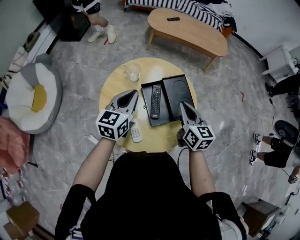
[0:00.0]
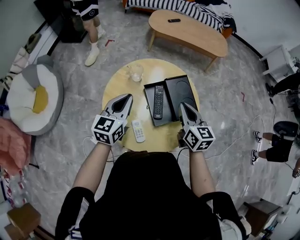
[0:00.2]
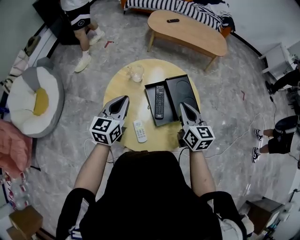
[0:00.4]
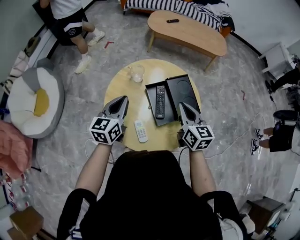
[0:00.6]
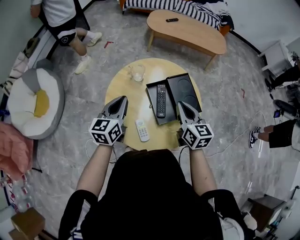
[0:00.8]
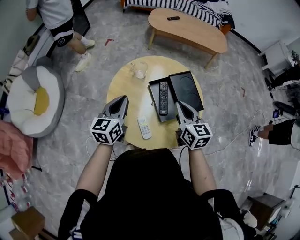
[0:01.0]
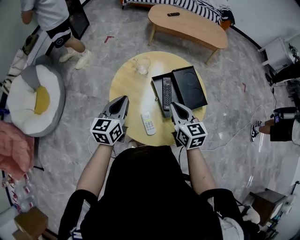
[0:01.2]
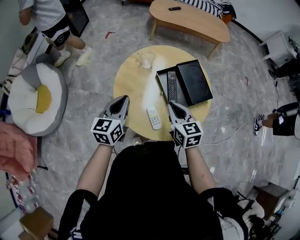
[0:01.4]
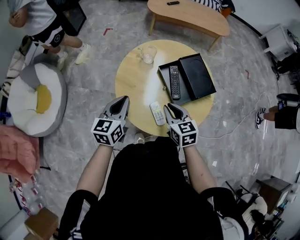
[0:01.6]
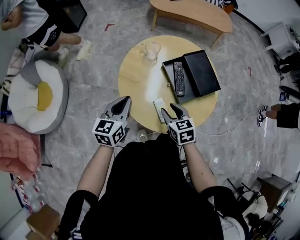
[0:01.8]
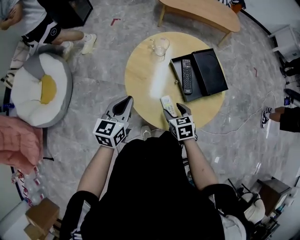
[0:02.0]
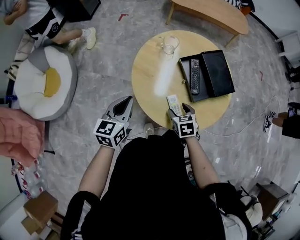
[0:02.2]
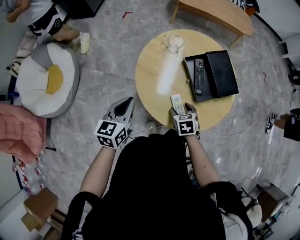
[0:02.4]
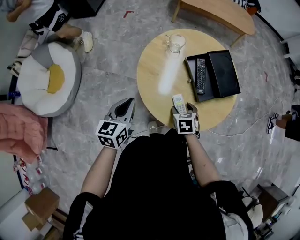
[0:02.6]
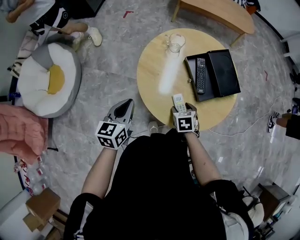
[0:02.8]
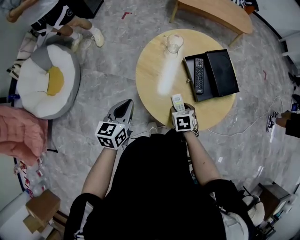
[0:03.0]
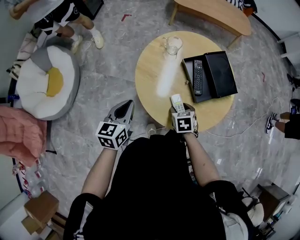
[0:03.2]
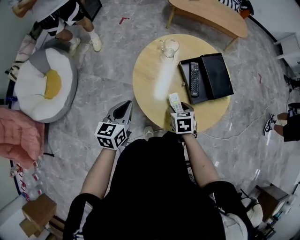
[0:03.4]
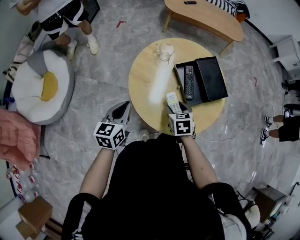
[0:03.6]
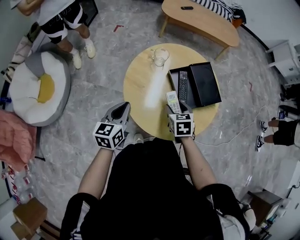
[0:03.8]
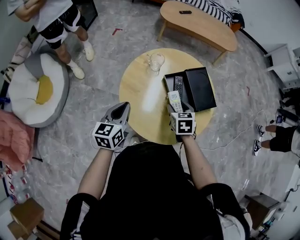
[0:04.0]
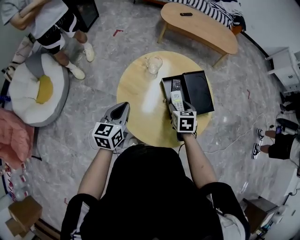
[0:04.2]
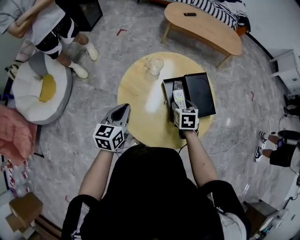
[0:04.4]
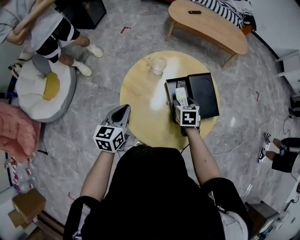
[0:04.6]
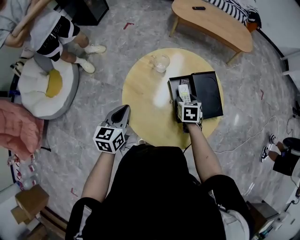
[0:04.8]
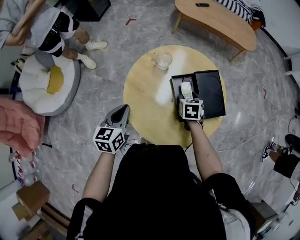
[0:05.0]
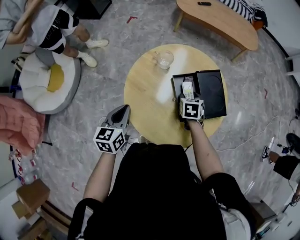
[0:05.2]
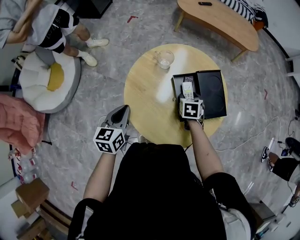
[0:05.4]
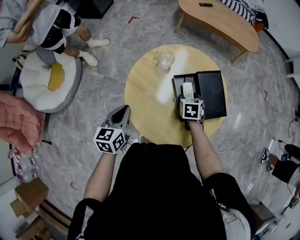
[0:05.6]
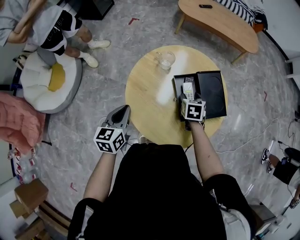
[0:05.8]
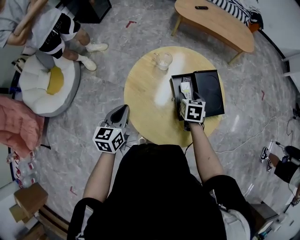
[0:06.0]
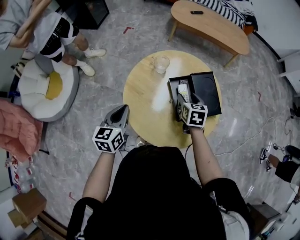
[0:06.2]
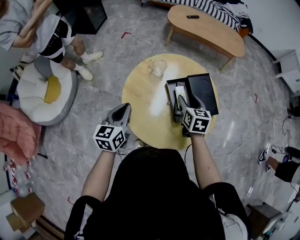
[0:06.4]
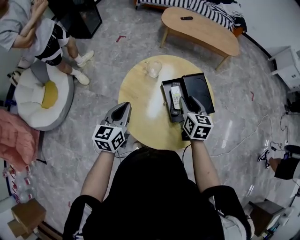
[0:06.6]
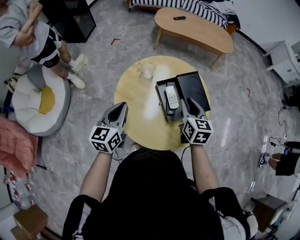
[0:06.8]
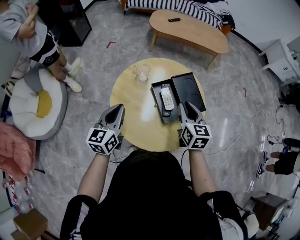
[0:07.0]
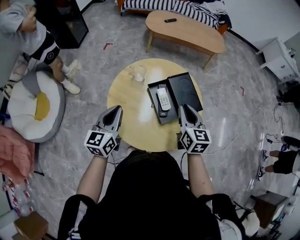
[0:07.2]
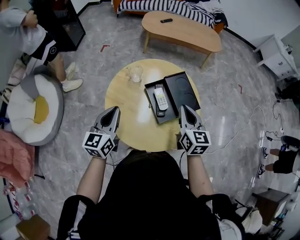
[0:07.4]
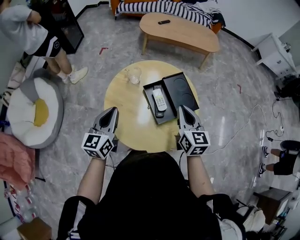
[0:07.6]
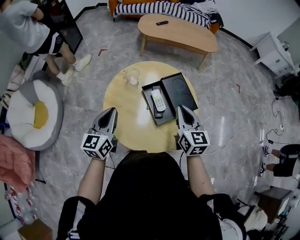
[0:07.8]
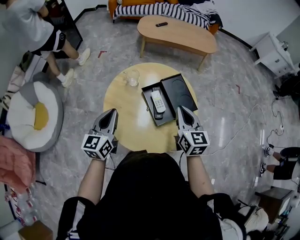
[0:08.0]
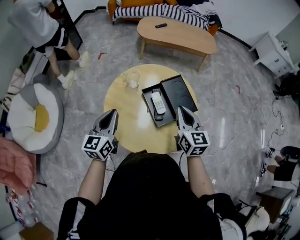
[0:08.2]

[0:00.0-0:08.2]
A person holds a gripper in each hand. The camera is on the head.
0:00.0 to 0:01.6: Both grippers move to the left, backward and downward, roughly 20 cm.
0:01.6 to 0:03.2: The right gripper moves downward, roughly 15 cm, swivels some 30 degrees, and opens its fingers. The left gripper shifts some 10 cm to the left and backward.
0:03.2 to 0:05.0: The right gripper heads forward and to the right, covering approximately 20 cm. Meanwhile the left gripper shifts some 10 cm forward and to the right.
0:05.0 to 0:06.6: The right gripper moves upward, about 15 cm, and rotates roughly 30 degrees. Meanwhile the left gripper shifts some 5 cm upward.
0:06.6 to 0:08.2: The right gripper heads upward and to the right, covering some 10 cm, and closes.

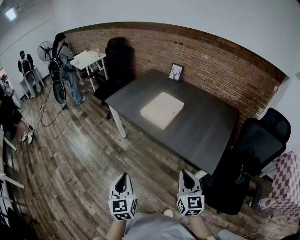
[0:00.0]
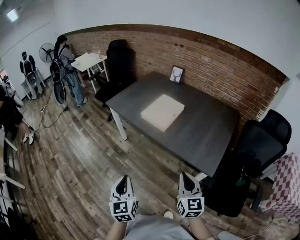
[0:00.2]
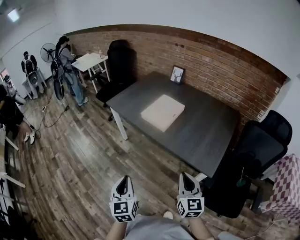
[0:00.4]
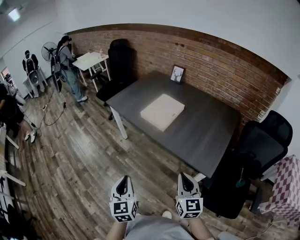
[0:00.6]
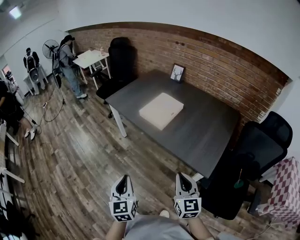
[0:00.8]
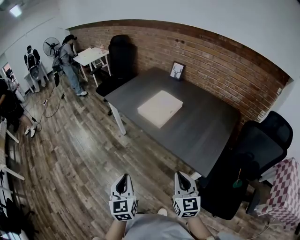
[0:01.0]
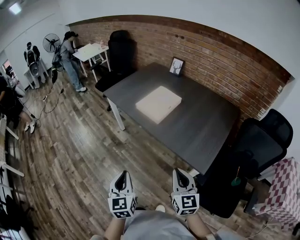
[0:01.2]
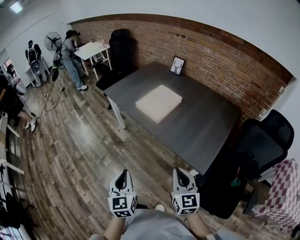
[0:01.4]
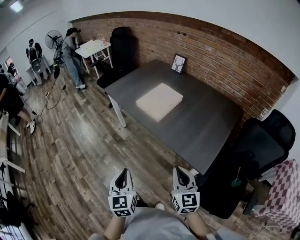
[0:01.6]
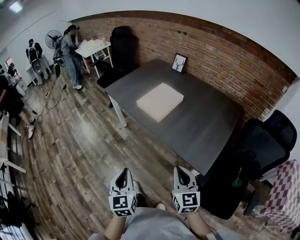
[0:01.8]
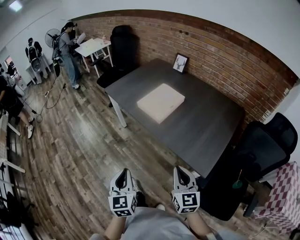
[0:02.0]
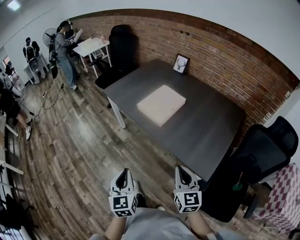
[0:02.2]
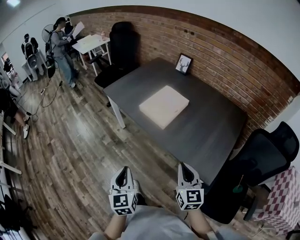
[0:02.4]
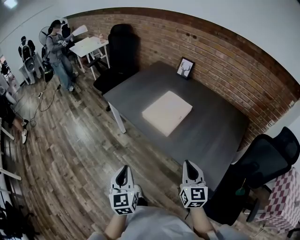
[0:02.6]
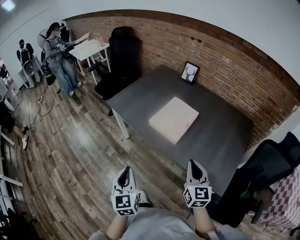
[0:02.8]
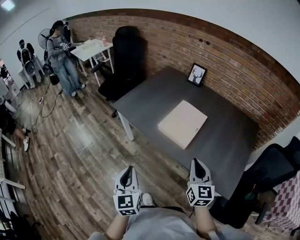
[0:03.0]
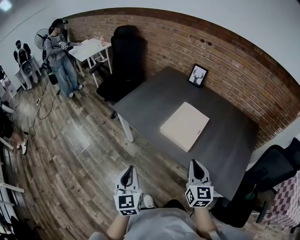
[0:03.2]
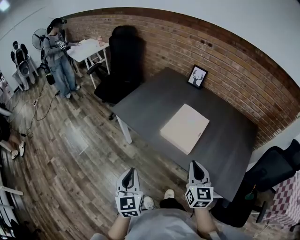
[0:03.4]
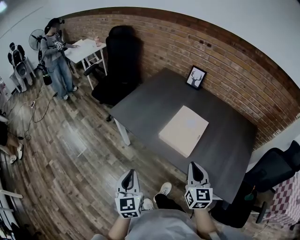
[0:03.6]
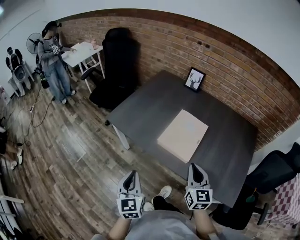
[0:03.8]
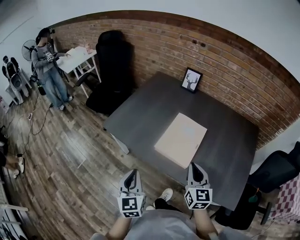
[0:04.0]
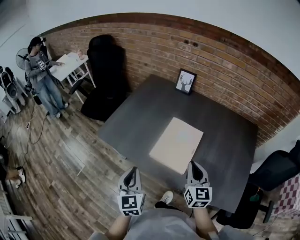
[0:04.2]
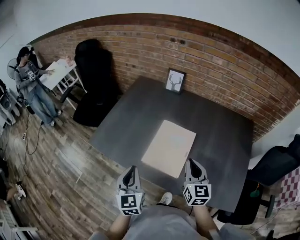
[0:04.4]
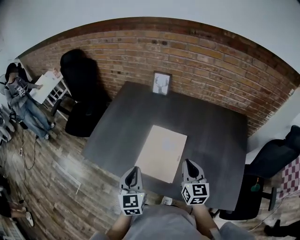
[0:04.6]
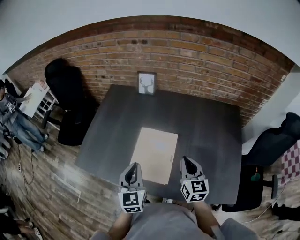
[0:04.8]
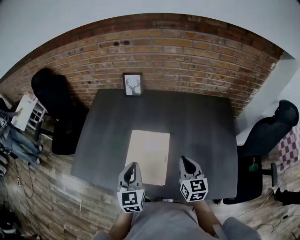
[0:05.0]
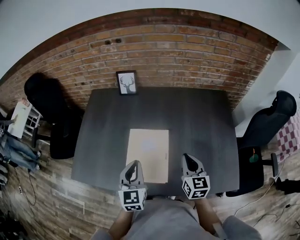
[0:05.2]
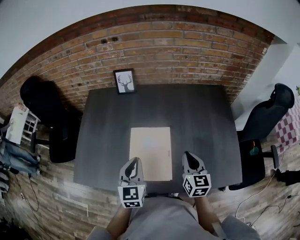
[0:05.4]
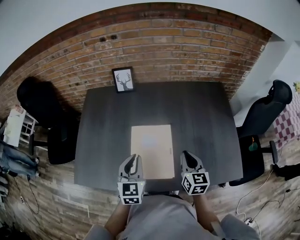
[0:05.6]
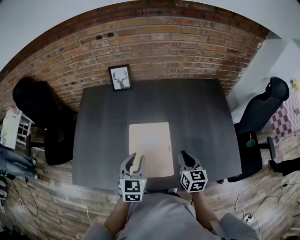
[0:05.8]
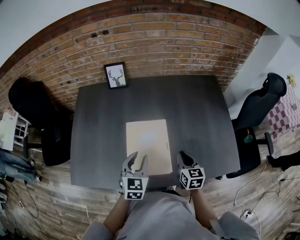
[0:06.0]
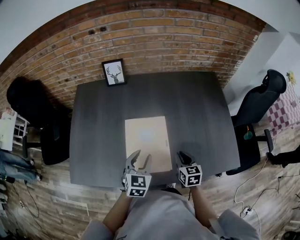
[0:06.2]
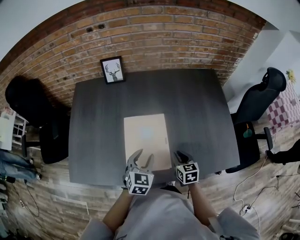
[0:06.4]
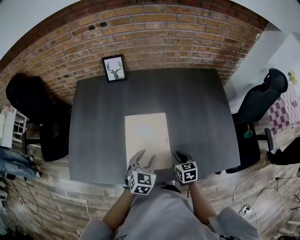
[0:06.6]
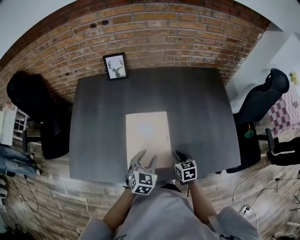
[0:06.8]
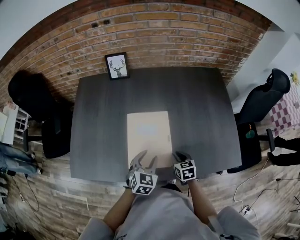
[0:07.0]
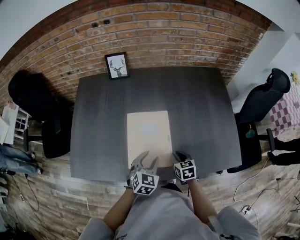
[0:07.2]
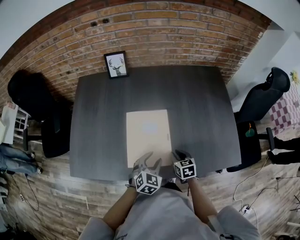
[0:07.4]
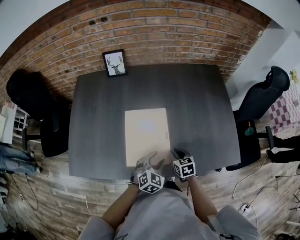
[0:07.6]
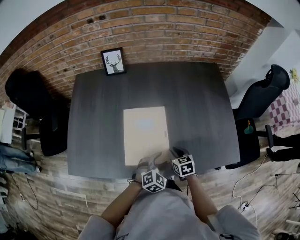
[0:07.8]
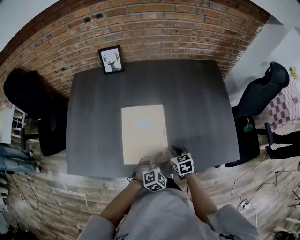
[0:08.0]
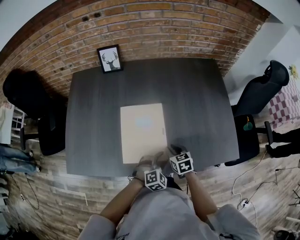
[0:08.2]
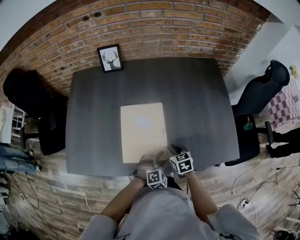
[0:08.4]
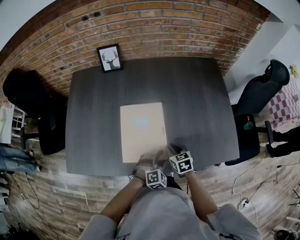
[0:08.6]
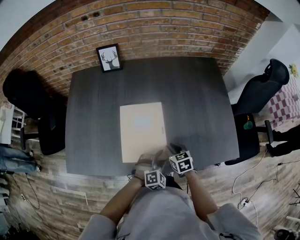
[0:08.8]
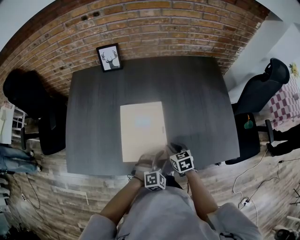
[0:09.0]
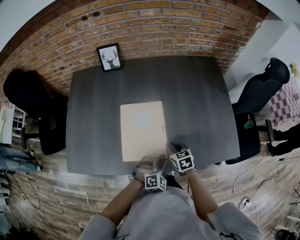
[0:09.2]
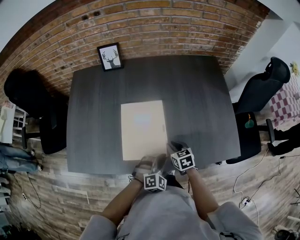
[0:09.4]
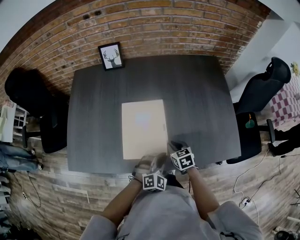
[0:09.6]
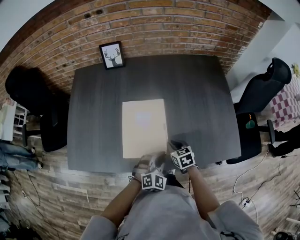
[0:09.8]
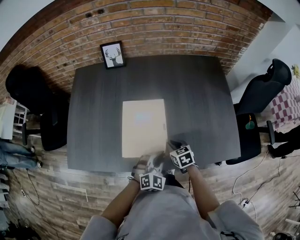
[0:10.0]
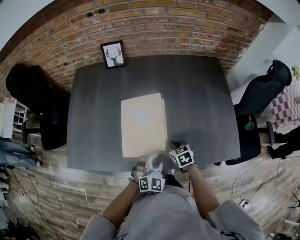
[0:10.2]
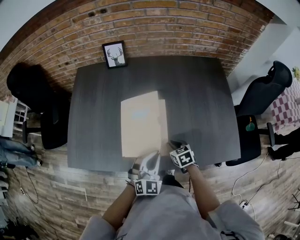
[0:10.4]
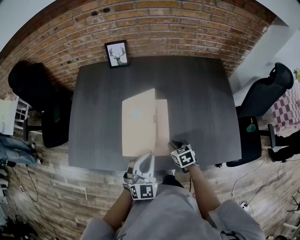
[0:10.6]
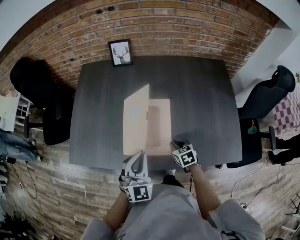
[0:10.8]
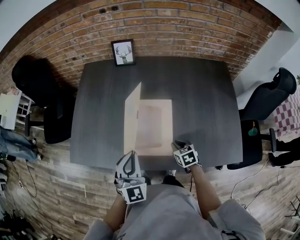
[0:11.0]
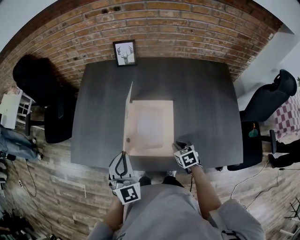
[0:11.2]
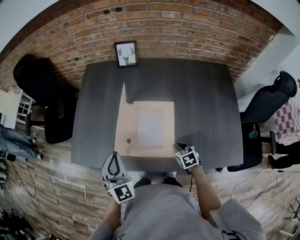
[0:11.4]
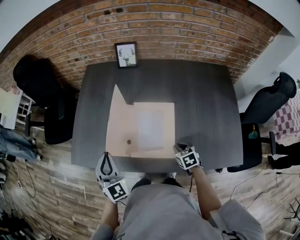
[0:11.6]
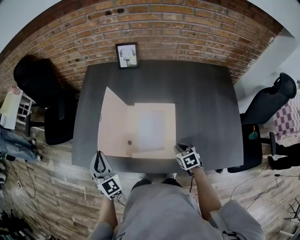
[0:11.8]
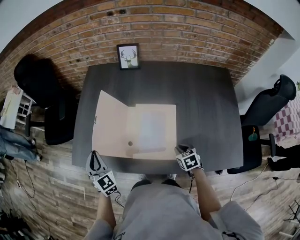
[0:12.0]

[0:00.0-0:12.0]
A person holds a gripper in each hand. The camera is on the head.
0:00.0 to 0:01.6: The right gripper shifts roughly 5 cm to the right, while the left gripper is displaced to the right by approximately 10 cm.
0:01.6 to 0:03.0: The left gripper is displaced forward and to the left by about 30 cm, while the right gripper moves forward, some 25 cm.
0:03.0 to 0:04.4: The grippers both shift forward by roughly 25 cm.
0:04.4 to 0:06.0: The right gripper shifts approximately 10 cm downward, and turns by roughly 30 degrees, while the left gripper changes place by about 20 cm, swivels roughly 40 degrees, and opens its fingers.
0:06.0 to 0:07.6: The right gripper shifts some 10 cm downward, and turns by about 20 degrees. Meanwhile the left gripper shifts some 15 cm downward, to the right and backward, and changes its angle by some 30 degrees.
0:07.6 to 0:09.0: The left gripper ends up roughly 5 cm from where it was, and rotates roughly 30 degrees.
0:09.0 to 0:10.4: The left gripper shifts roughly 10 cm upward and to the left, rotates some 30 degrees, and closes its fingers.
0:10.4 to 0:12.0: The left gripper moves roughly 35 cm, and changes its angle by roughly 50 degrees.

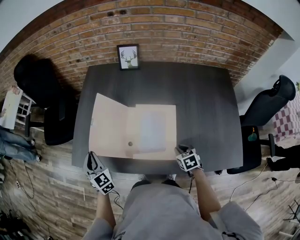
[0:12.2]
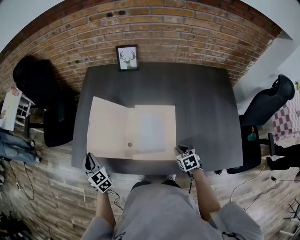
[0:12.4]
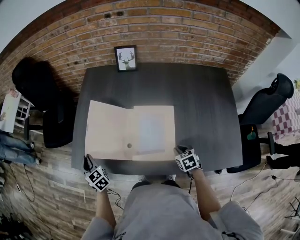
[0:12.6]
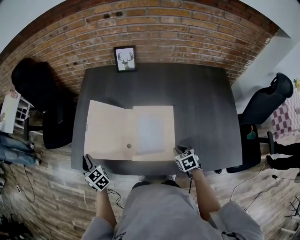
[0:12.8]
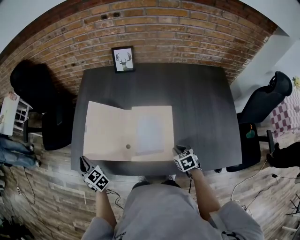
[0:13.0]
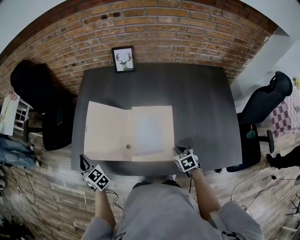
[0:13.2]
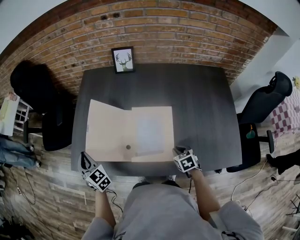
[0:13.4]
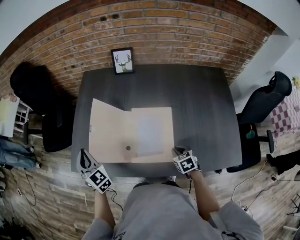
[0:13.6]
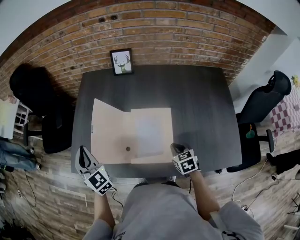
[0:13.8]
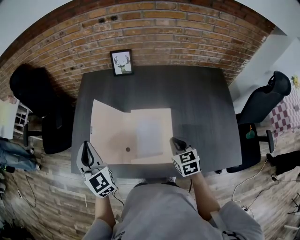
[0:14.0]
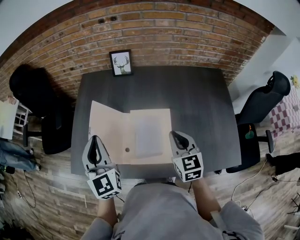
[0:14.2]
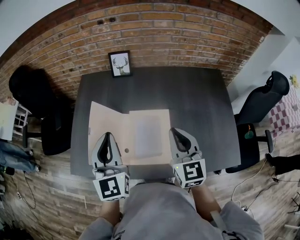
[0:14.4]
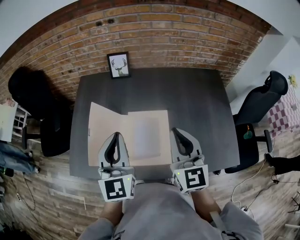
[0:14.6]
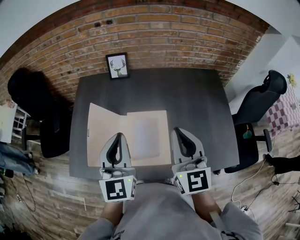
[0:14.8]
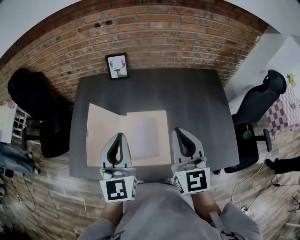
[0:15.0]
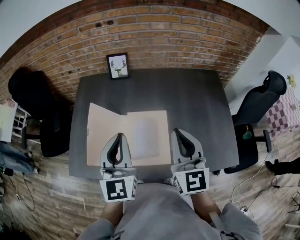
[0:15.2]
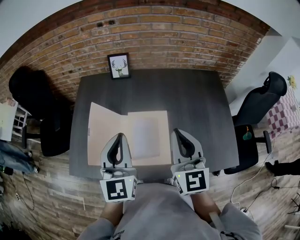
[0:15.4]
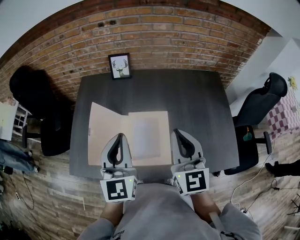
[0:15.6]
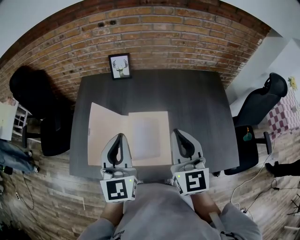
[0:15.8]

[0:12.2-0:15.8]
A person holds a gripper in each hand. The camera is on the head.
0:12.2 to 0:14.0: The left gripper shifts some 15 cm upward and to the right. The right gripper heads upward and forward, covering approximately 15 cm, and turns by some 20 degrees.
0:14.0 to 0:15.8: The left gripper heads to the right and upward, covering about 20 cm, and changes its angle by some 30 degrees; the right gripper is displaced upward by approximately 25 cm, and tips its fingers upward by some 40 degrees.
